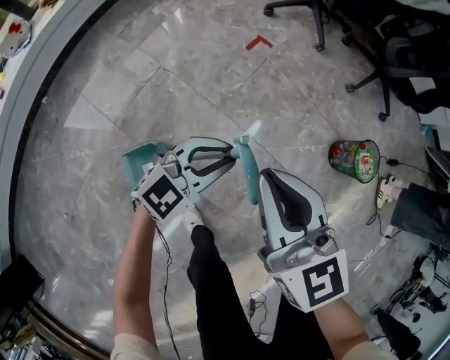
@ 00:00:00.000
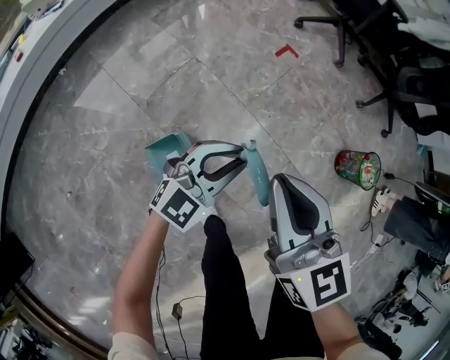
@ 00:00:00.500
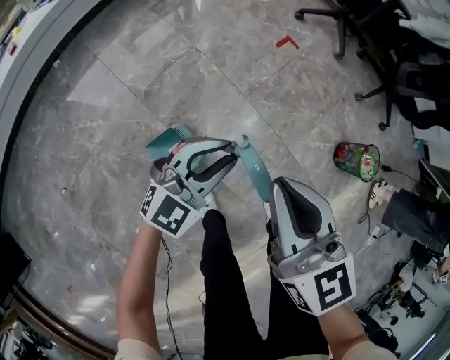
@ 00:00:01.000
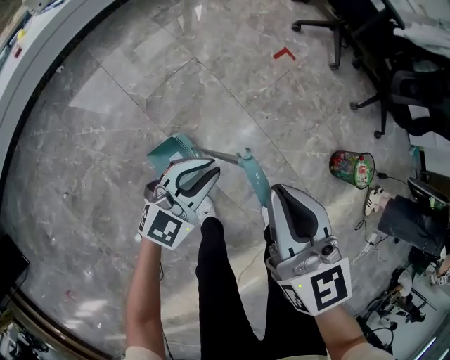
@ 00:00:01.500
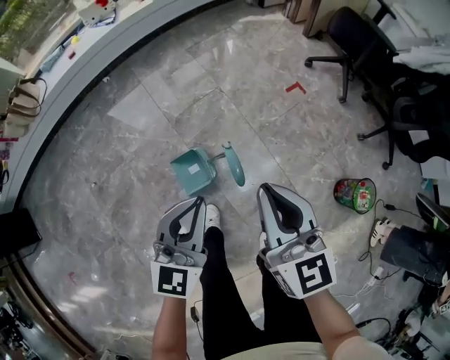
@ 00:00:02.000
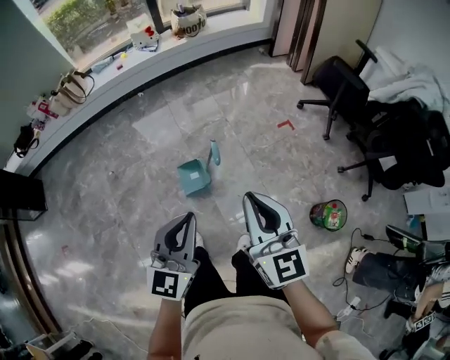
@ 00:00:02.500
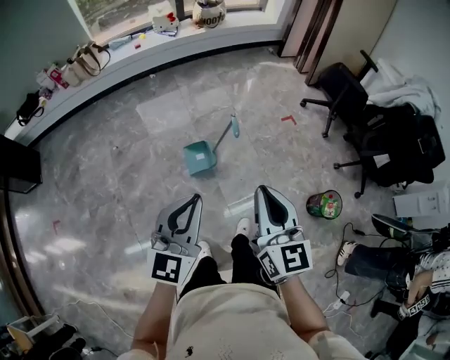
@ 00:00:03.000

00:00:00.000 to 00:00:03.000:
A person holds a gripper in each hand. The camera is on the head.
00:00:00.000 to 00:00:01.500: The grippers both shift to the left and backward by some 20 cm. The left gripper swivels some 20 degrees.
00:00:01.500 to 00:00:03.000: The right gripper changes place by about 50 cm, and turns by about 20 degrees. Meanwhile the left gripper heads upward, covering some 50 cm, and rotates approximately 50 degrees.

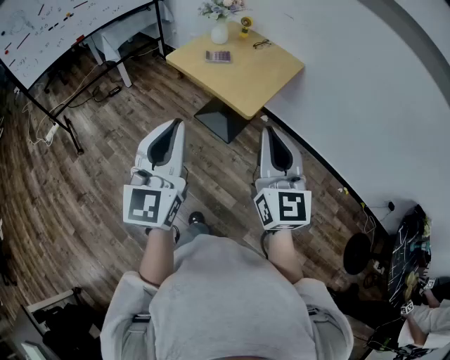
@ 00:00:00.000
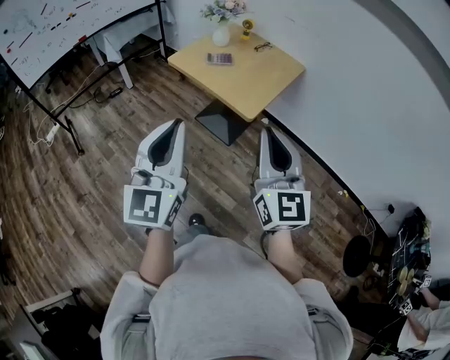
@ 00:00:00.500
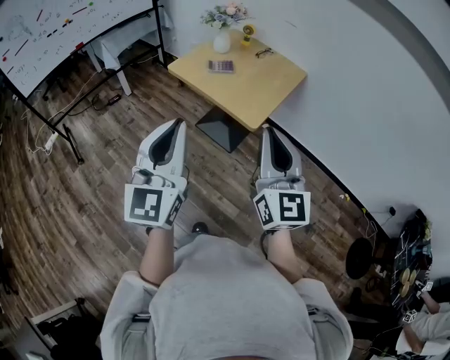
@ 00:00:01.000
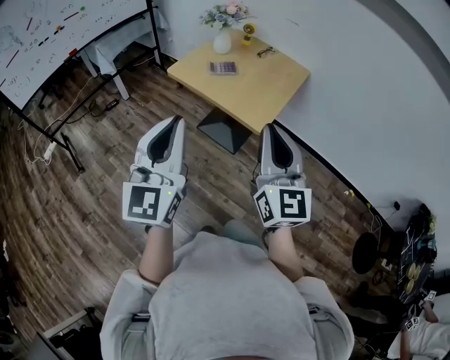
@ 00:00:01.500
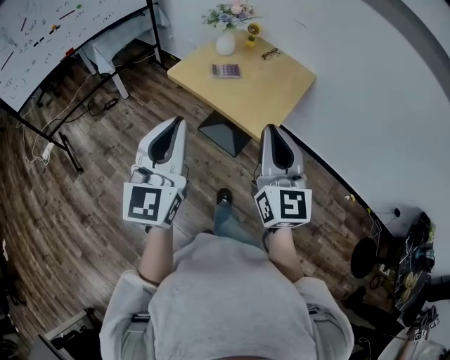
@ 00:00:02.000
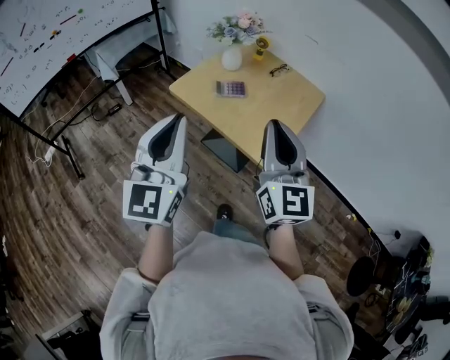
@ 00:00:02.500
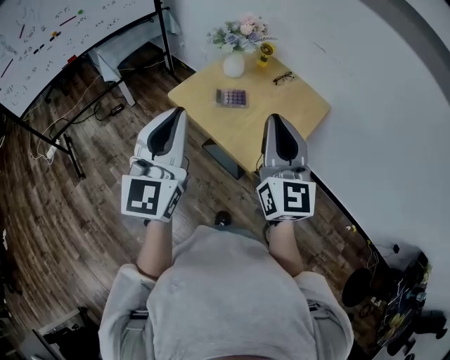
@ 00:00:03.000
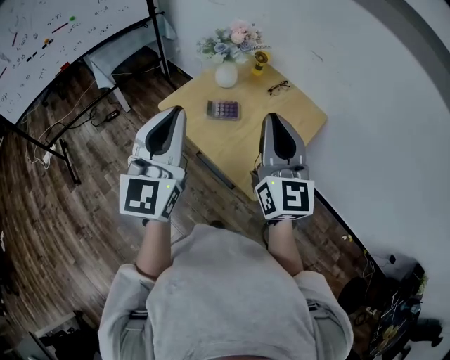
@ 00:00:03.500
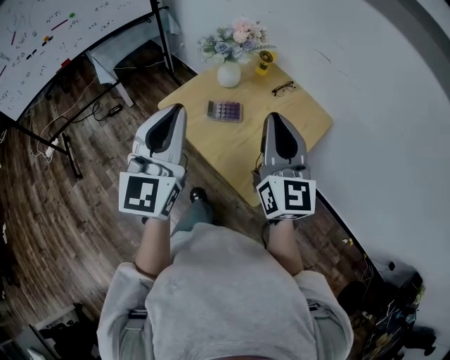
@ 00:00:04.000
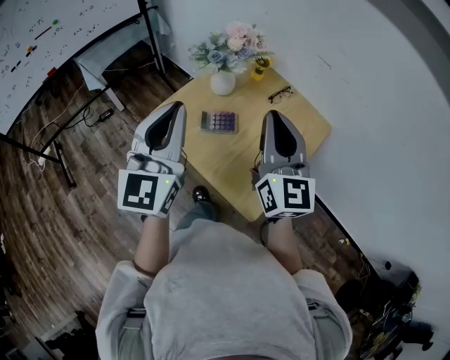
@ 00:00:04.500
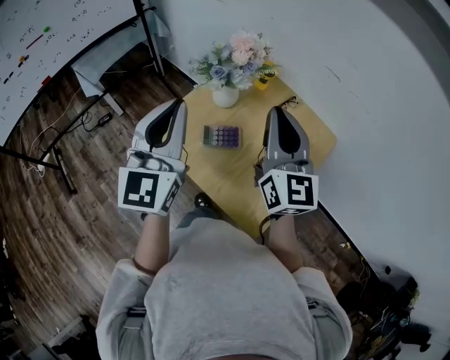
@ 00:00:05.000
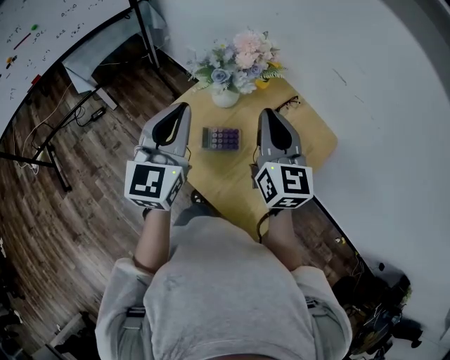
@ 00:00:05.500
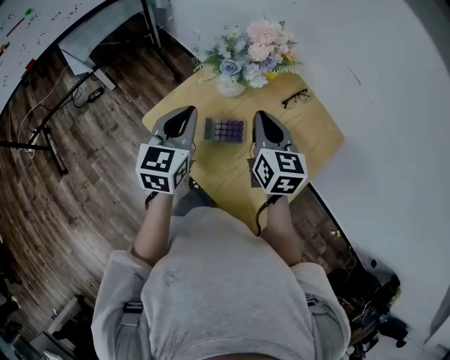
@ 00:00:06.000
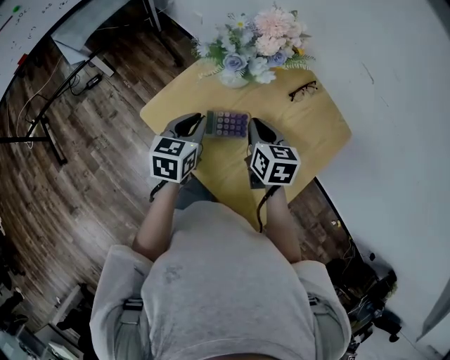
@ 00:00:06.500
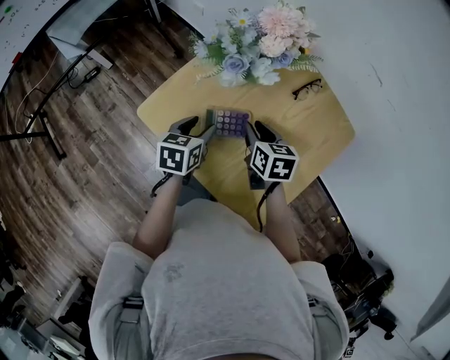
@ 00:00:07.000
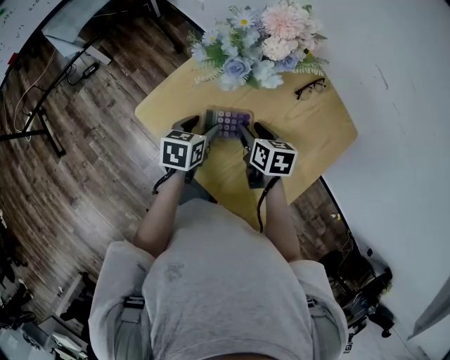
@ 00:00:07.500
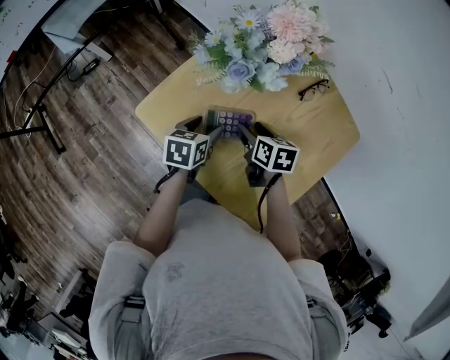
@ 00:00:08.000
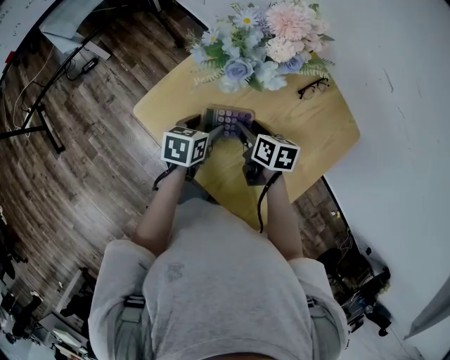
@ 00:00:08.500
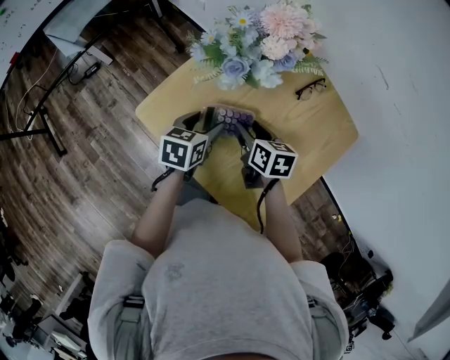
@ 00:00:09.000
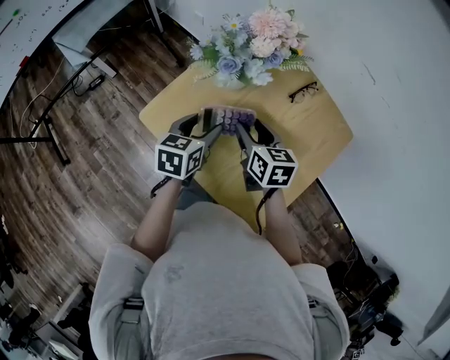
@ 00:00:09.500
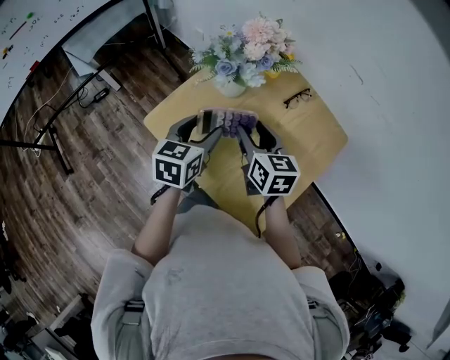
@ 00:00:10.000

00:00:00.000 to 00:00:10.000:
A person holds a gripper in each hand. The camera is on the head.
00:00:00.000 to 00:00:02.000: Both grippers move forward and to the left, about 15 cm.
00:00:02.000 to 00:00:04.000: The grippers both shift forward by roughly 30 cm.
00:00:04.000 to 00:00:06.000: The two grippers go about 30 cm forward and downward. The right gripper tips its fingers downward by roughly 30 degrees. Meanwhile the left gripper changes its angle by roughly 30 degrees.
00:00:06.000 to 00:00:08.000: Both grippers travel together downward, about 20 cm. The left gripper turns by about 40 degrees, and opens. Meanwhile the right gripper rotates about 40 degrees, and opens.
00:00:08.000 to 00:00:10.000: Both grippers move upward, some 15 cm. The left gripper turns by roughly 20 degrees. Meanwhile the right gripper swivels roughly 30 degrees.

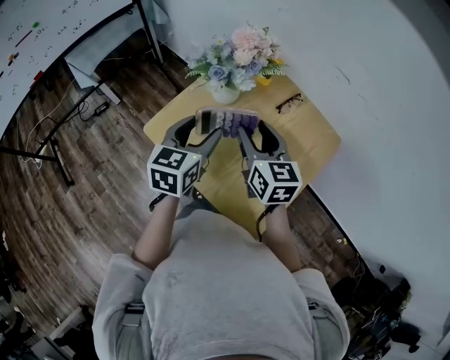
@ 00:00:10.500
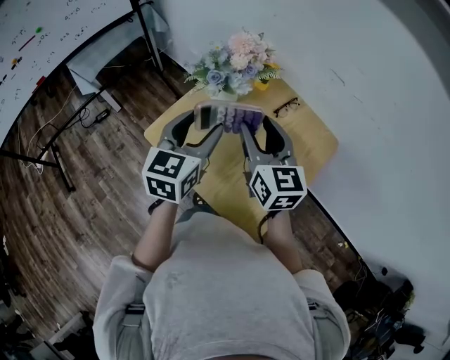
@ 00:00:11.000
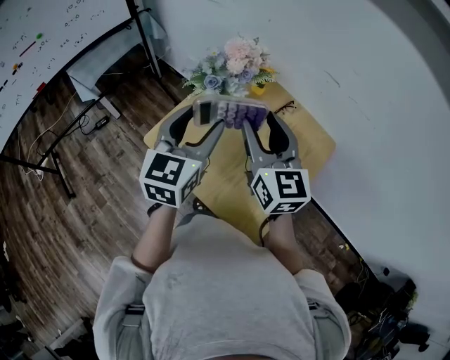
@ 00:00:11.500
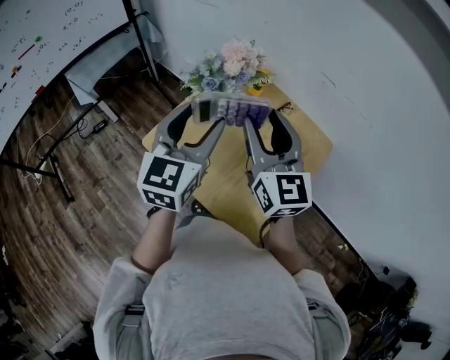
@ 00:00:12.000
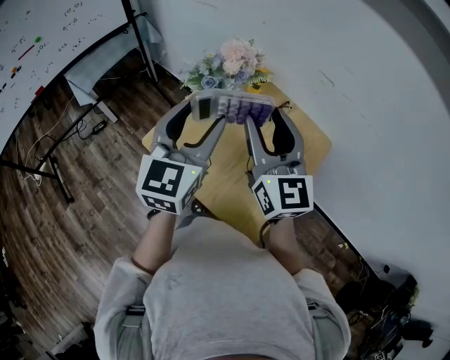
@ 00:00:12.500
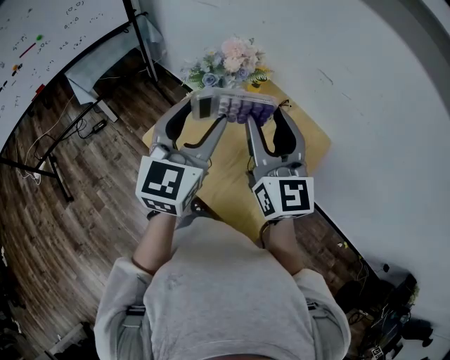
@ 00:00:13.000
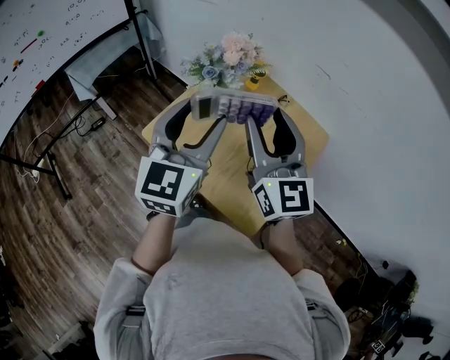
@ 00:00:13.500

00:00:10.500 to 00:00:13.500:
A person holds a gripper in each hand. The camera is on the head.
00:00:10.500 to 00:00:12.000: Both grippers move upward, roughly 15 cm. The left gripper changes its angle by some 20 degrees. Meanwhile the right gripper rotates approximately 20 degrees.
00:00:12.000 to 00:00:13.500: Both grippers move backward, roughly 5 cm.

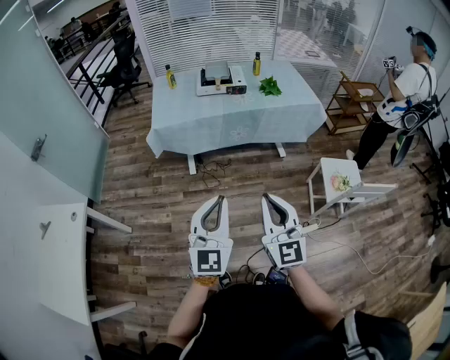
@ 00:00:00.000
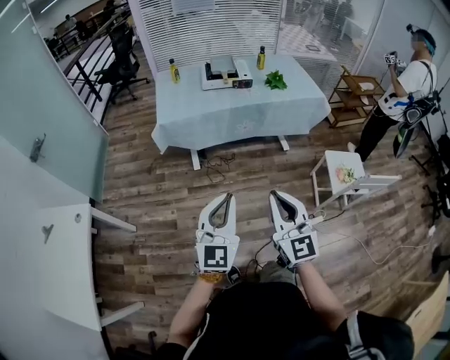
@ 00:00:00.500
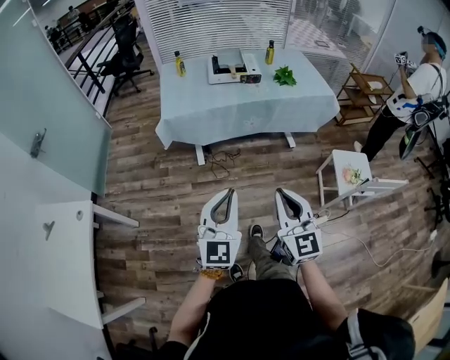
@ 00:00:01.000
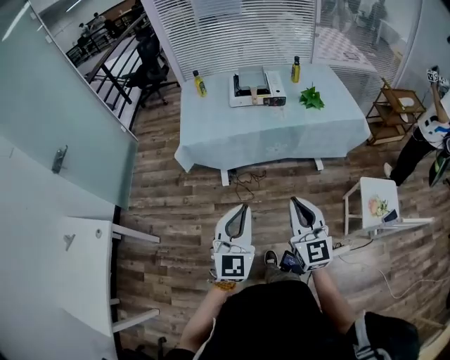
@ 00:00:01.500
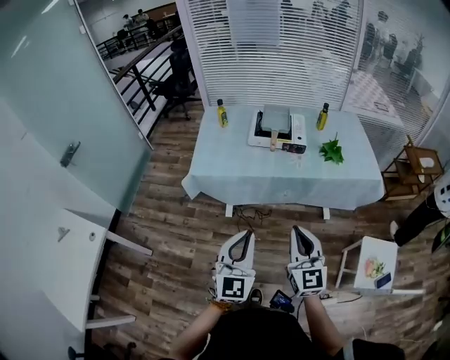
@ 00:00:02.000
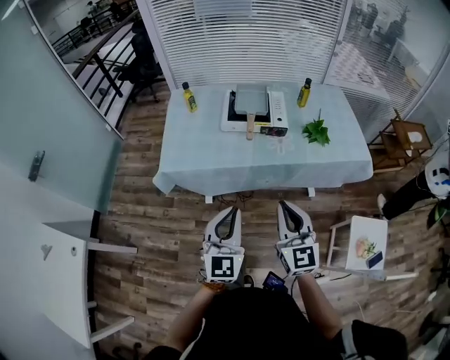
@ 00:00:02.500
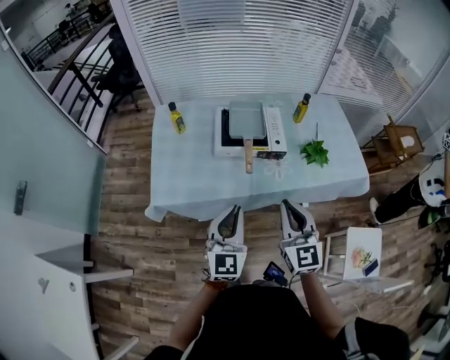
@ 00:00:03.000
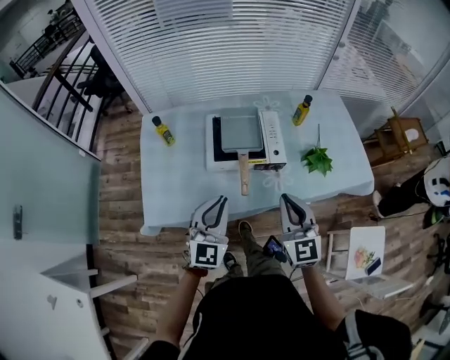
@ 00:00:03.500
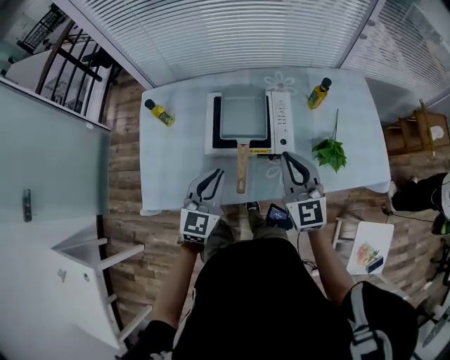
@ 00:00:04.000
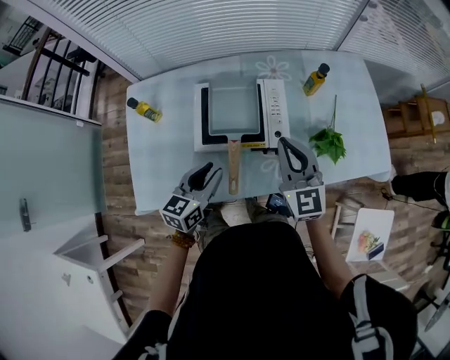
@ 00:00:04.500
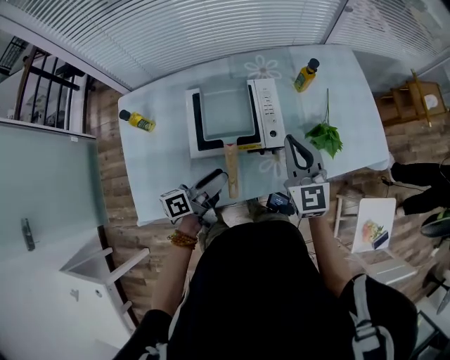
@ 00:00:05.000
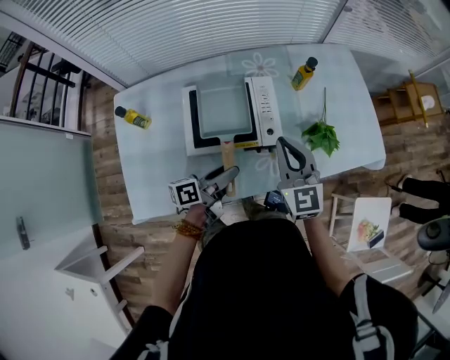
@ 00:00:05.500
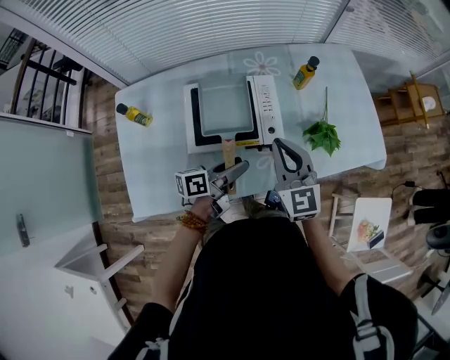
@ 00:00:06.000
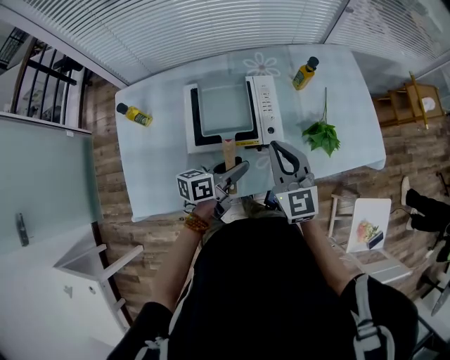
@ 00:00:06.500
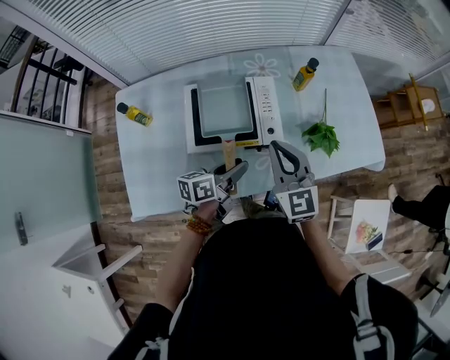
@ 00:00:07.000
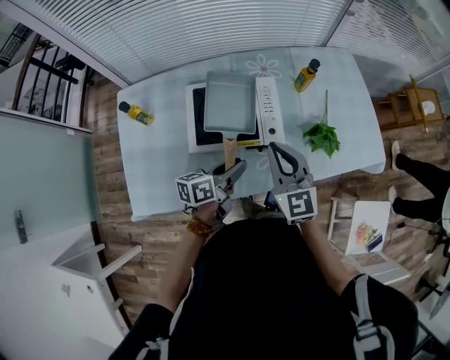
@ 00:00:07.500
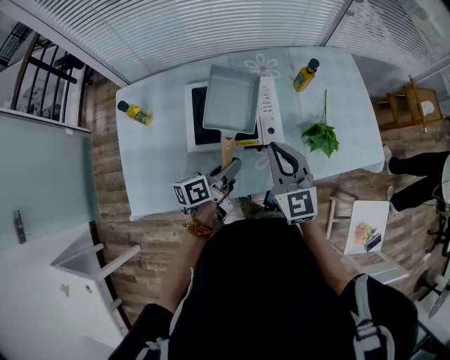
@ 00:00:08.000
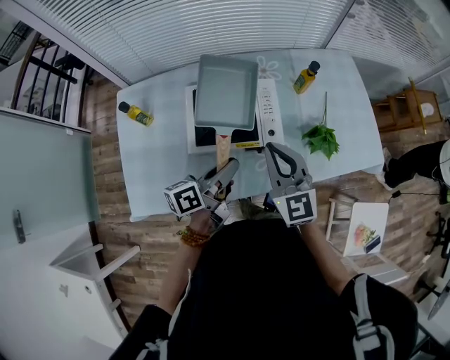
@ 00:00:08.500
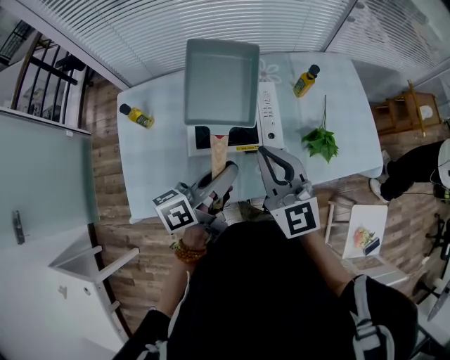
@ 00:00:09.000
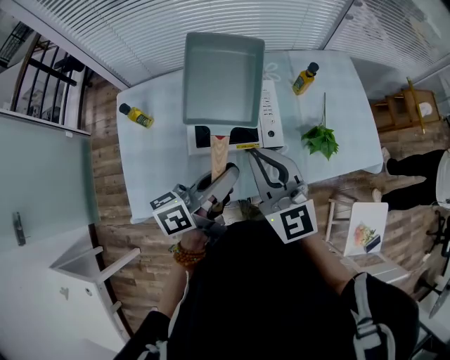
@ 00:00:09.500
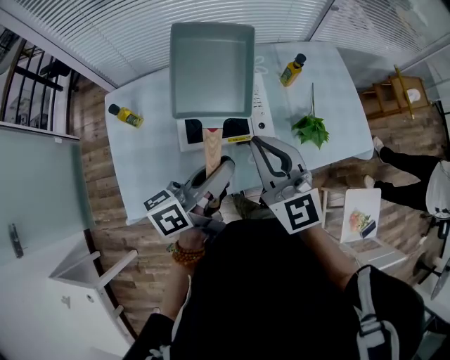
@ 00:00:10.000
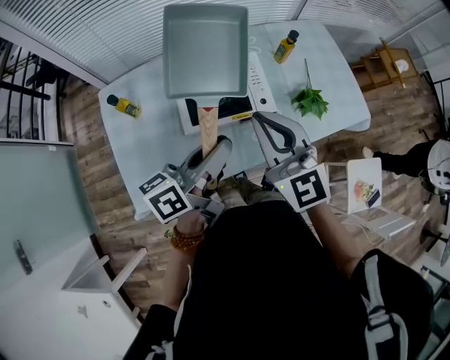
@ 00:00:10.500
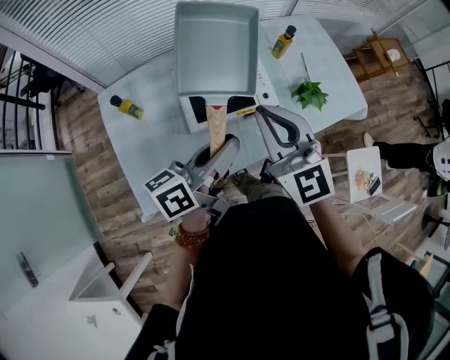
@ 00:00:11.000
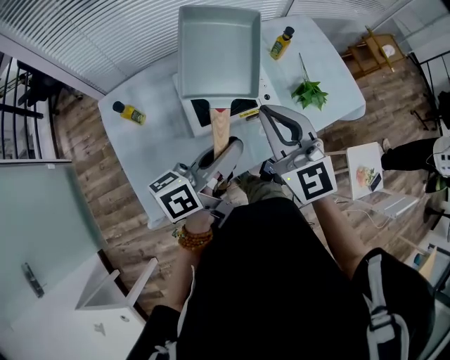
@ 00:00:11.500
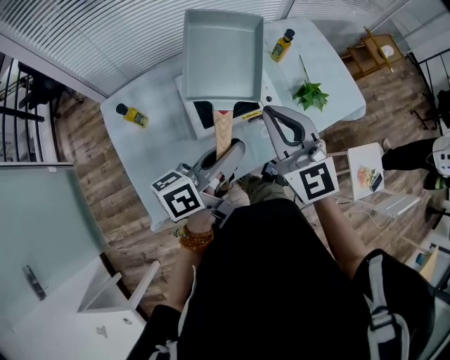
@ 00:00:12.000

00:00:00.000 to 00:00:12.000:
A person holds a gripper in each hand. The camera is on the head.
00:00:00.000 to 00:00:02.000: Both grippers move forward, approximately 30 cm.
00:00:02.000 to 00:00:04.000: The pair of grippers is taken forward, approximately 50 cm. The left gripper turns by some 20 degrees.
00:00:04.000 to 00:00:06.000: The left gripper moves downward, to the right and forward, roughly 15 cm, rolls counterclockwise, seen from behind, by approximately 70 degrees, and opens its fingers.
00:00:06.000 to 00:00:08.000: The left gripper closes up.
00:00:08.000 to 00:00:10.000: The left gripper travels upward by some 20 cm. Meanwhile the right gripper shifts roughly 10 cm upward.
00:00:10.000 to 00:00:12.000: The two grippers go about 5 cm to the left.
